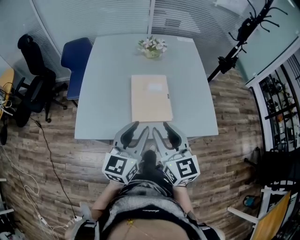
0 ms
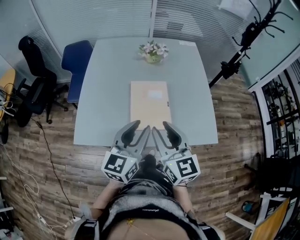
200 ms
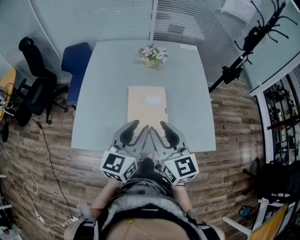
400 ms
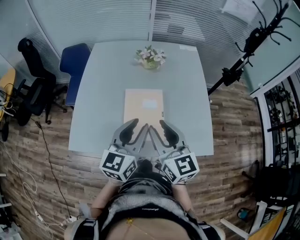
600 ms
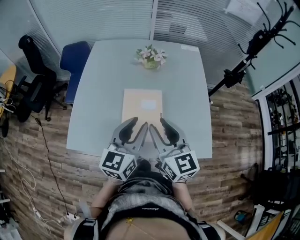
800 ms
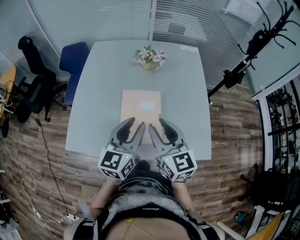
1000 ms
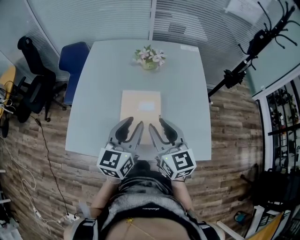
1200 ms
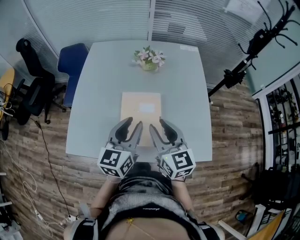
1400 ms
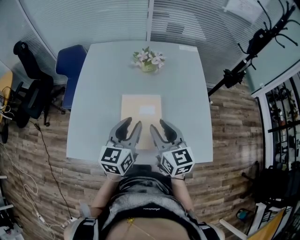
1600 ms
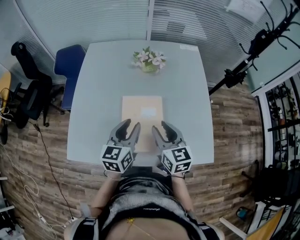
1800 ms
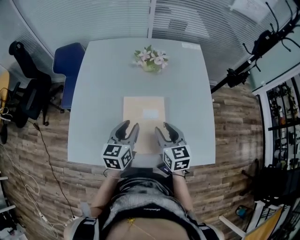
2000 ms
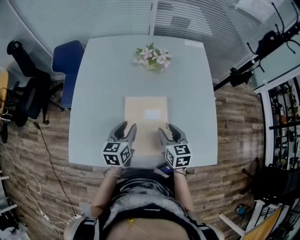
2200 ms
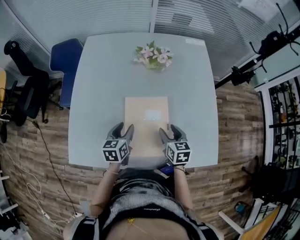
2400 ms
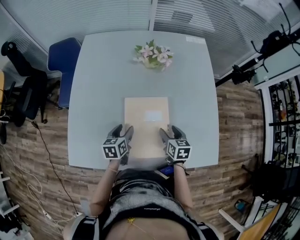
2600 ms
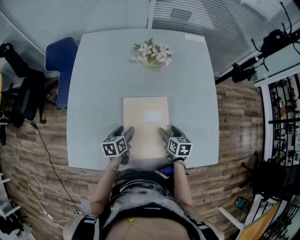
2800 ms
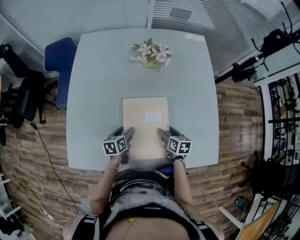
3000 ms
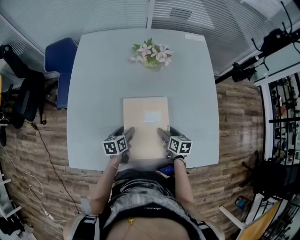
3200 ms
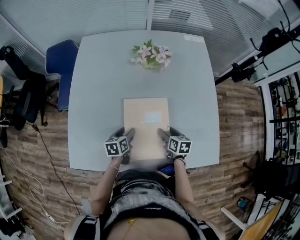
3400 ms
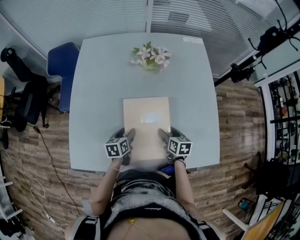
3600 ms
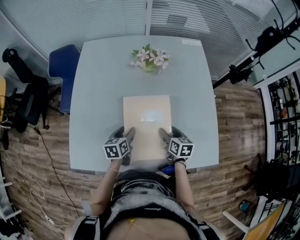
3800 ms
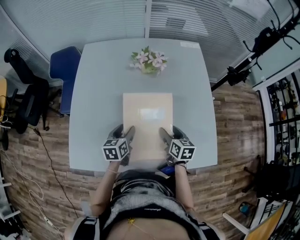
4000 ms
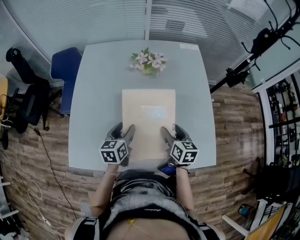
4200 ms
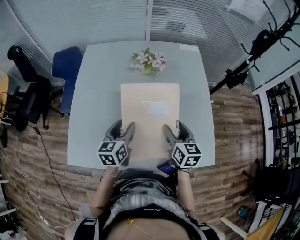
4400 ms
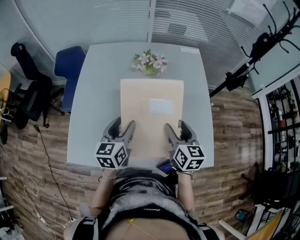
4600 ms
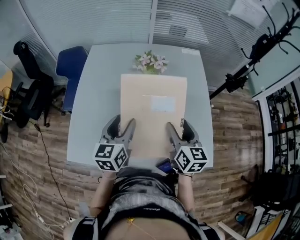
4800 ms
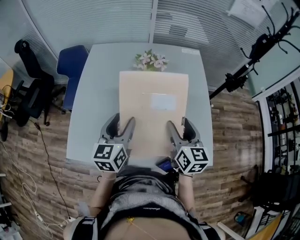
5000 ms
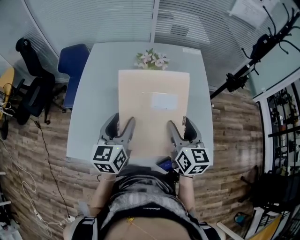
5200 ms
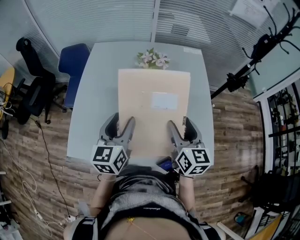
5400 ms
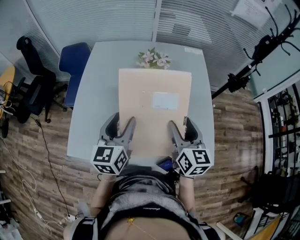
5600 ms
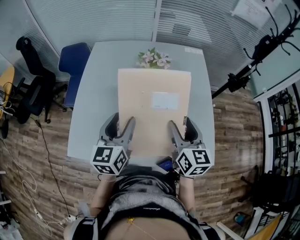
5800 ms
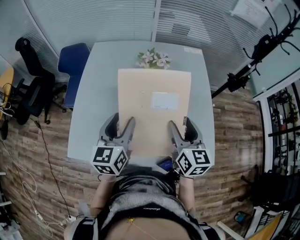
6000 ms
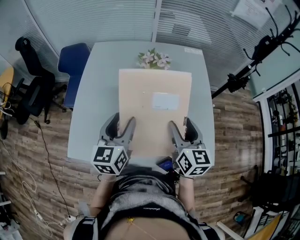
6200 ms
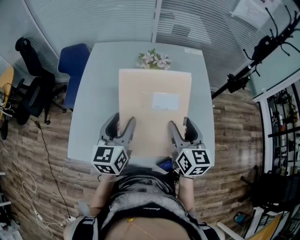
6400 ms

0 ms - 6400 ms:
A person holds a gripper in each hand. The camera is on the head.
0 ms - 1600 ms: The grippers both shift forward by roughly 20 cm.
1600 ms - 3200 ms: The two grippers go approximately 30 cm downward. The left gripper angles its fingers downward, by some 30 degrees, and opens its fingers. The right gripper swivels about 40 degrees, and opens up.
3200 ms - 4800 ms: The two grippers go approximately 30 cm upward. The left gripper rotates about 40 degrees. The right gripper swivels roughly 30 degrees.
4800 ms - 6400 ms: The grippers stay close to where they were, moving slightly.

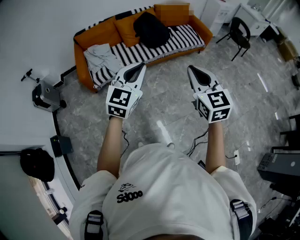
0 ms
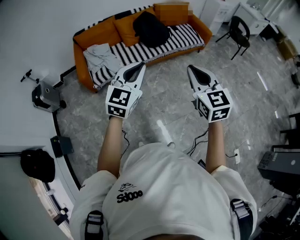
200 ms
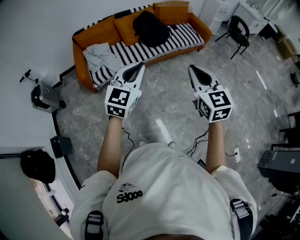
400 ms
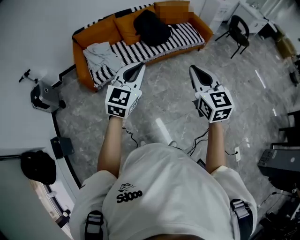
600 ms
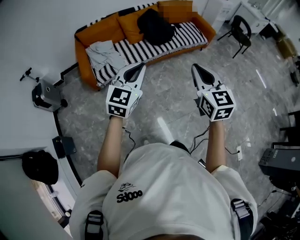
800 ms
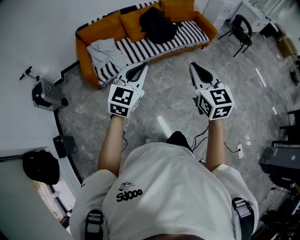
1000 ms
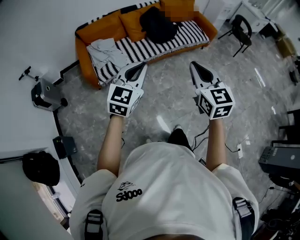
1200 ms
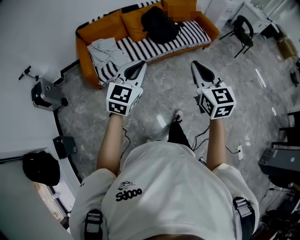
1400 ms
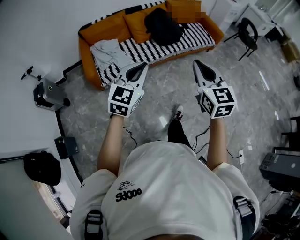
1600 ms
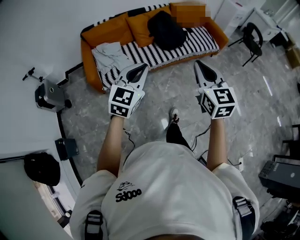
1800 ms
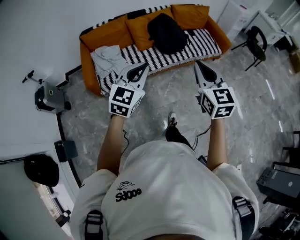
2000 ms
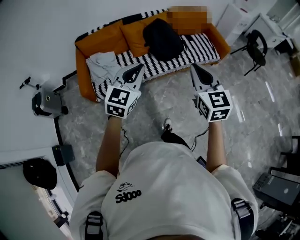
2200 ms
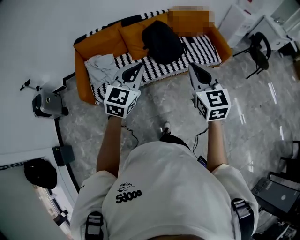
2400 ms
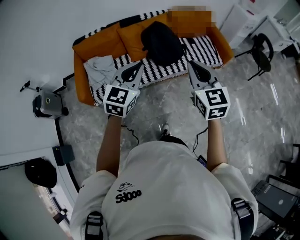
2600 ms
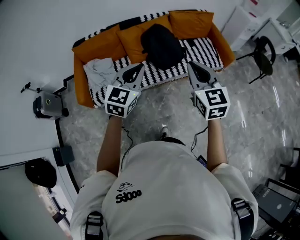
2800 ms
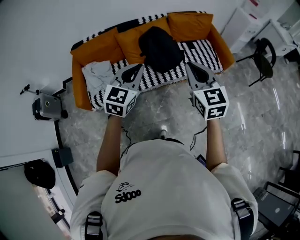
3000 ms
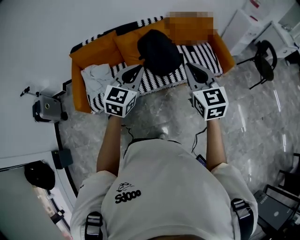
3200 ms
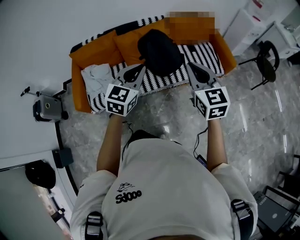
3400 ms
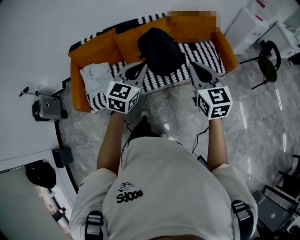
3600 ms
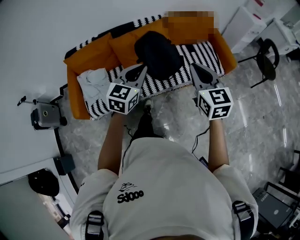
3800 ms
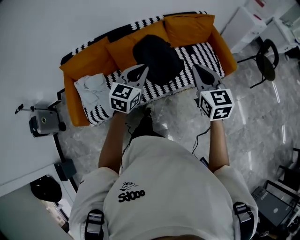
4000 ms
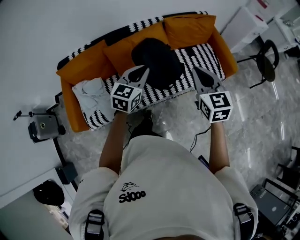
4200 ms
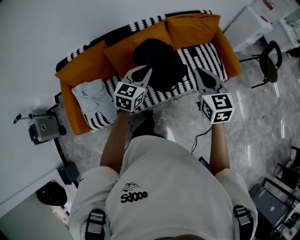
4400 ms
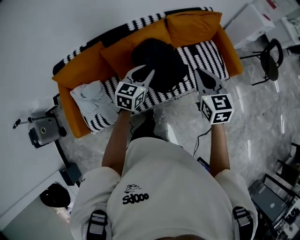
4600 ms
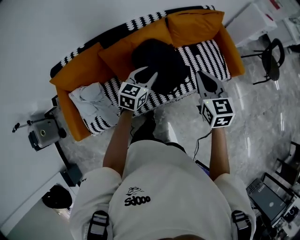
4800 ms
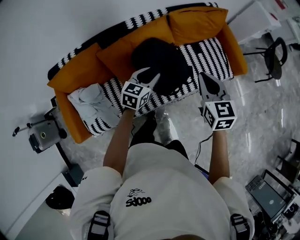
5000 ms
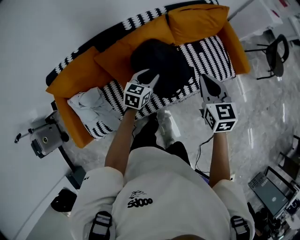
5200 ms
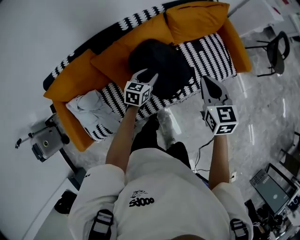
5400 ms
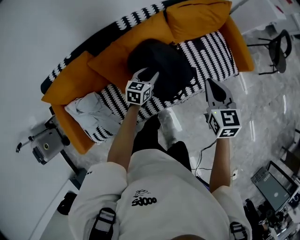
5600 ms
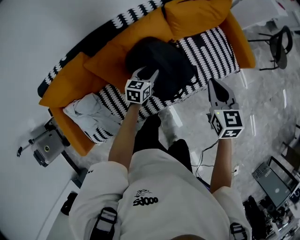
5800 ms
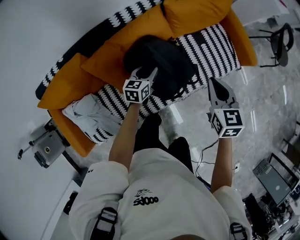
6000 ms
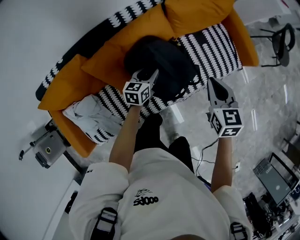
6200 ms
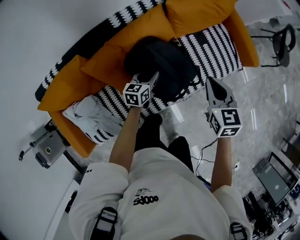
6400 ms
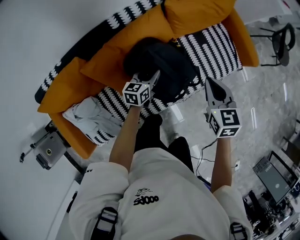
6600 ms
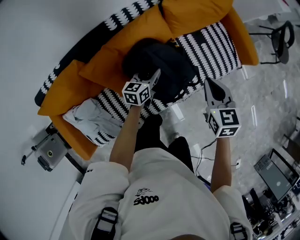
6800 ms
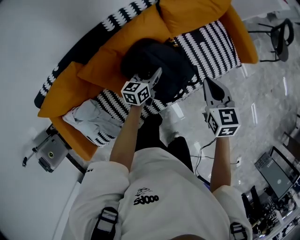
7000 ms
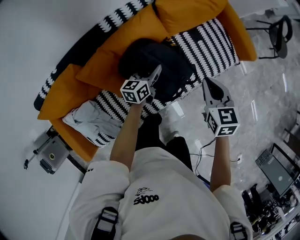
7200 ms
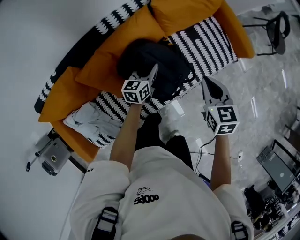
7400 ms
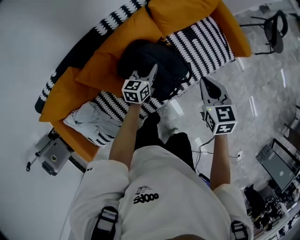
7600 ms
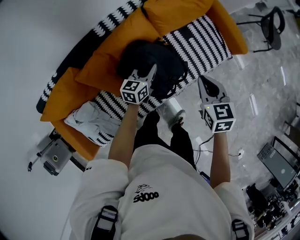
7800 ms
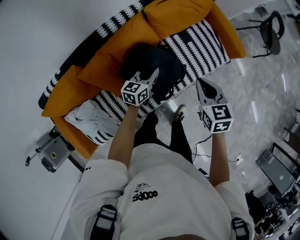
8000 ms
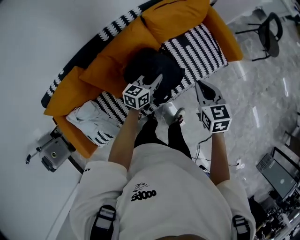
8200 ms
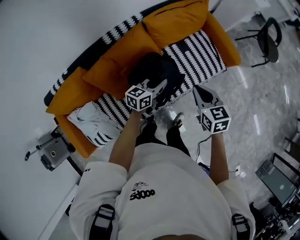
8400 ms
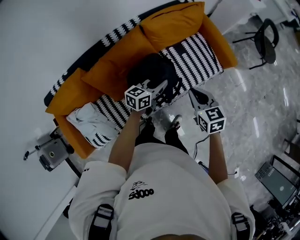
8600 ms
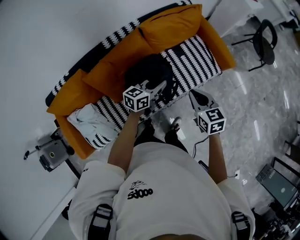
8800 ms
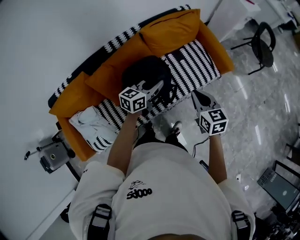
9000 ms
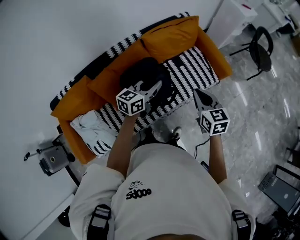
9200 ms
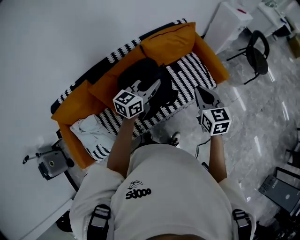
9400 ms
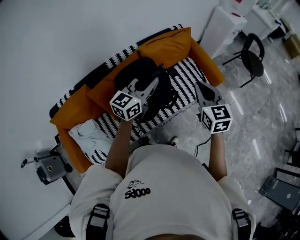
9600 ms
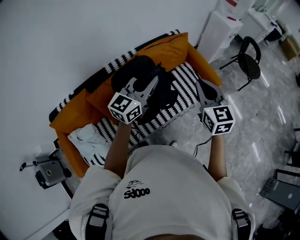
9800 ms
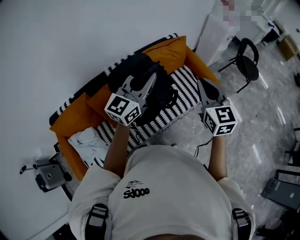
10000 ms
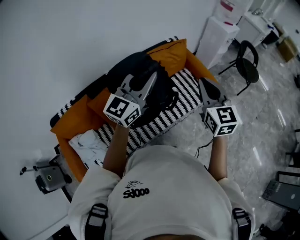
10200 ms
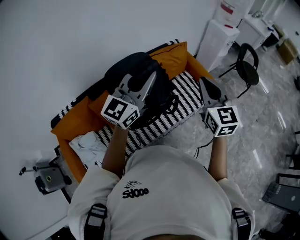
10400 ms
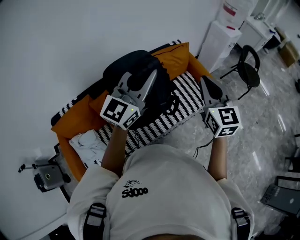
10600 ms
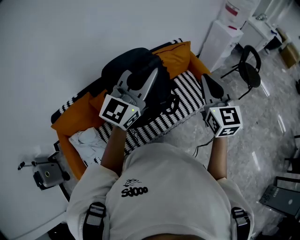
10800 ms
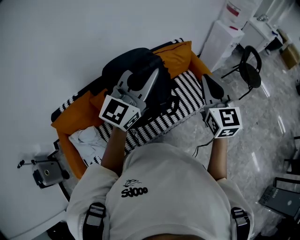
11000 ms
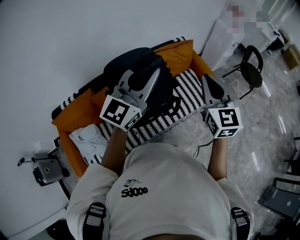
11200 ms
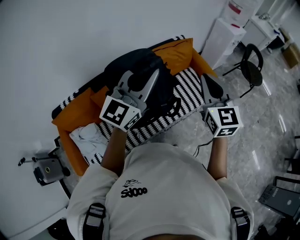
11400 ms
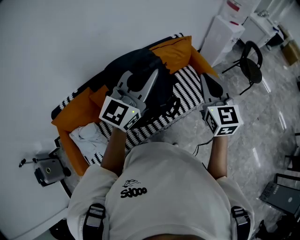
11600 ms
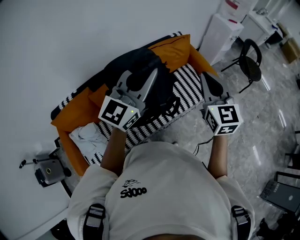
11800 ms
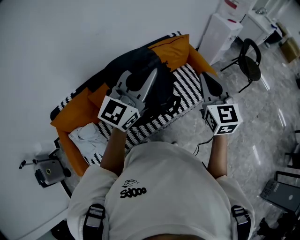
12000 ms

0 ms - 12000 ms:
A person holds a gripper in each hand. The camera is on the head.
0 ms - 1600 ms: The grippers both shift to the left and forward by about 15 cm.
1600 ms - 3000 ms: Both grippers are carried forward, approximately 50 cm.
3000 ms - 4400 ms: The grippers both shift forward by roughly 35 cm.
4400 ms - 6000 ms: The two grippers go roughly 35 cm downward and forward. The left gripper turns by some 20 degrees, and opens up.
6000 ms - 7600 ms: The left gripper travels forward by roughly 5 cm.
7600 ms - 9000 ms: The right gripper shifts roughly 20 cm to the right, upward and backward. The left gripper goes some 30 cm upward, to the right and backward.
9000 ms - 10400 ms: Both grippers travel together upward, roughly 30 cm. The left gripper rotates approximately 50 degrees. Meanwhile the right gripper rotates some 30 degrees.
10400 ms - 12000 ms: There are only small adjustments of the grippers.

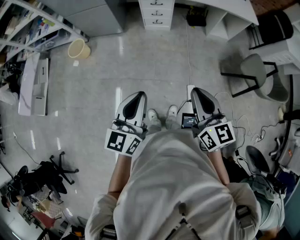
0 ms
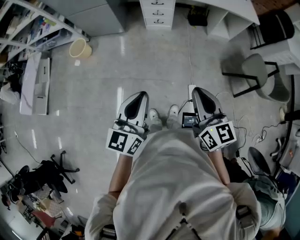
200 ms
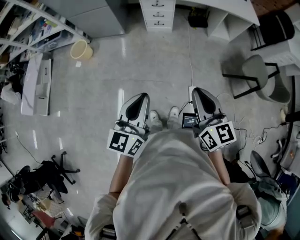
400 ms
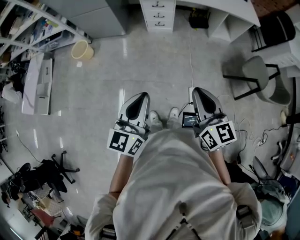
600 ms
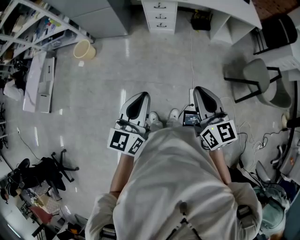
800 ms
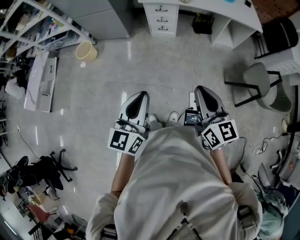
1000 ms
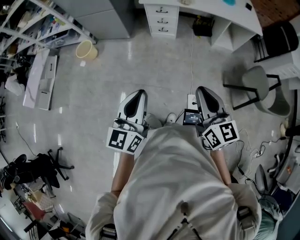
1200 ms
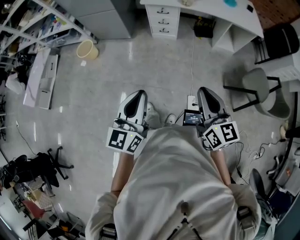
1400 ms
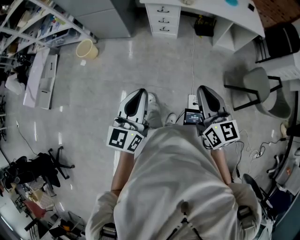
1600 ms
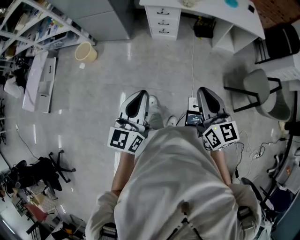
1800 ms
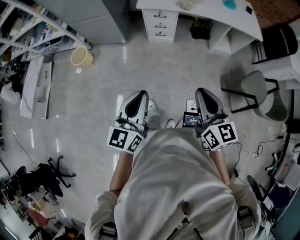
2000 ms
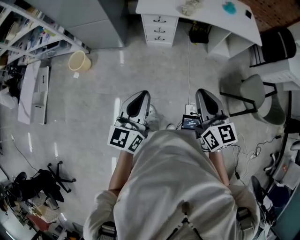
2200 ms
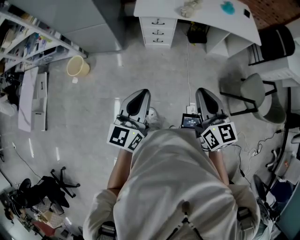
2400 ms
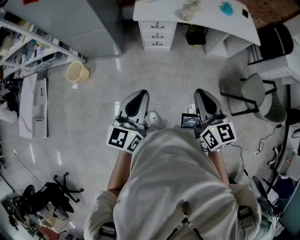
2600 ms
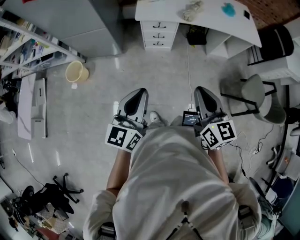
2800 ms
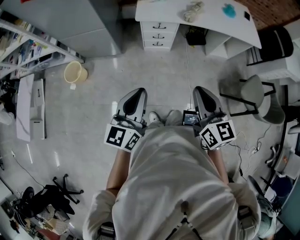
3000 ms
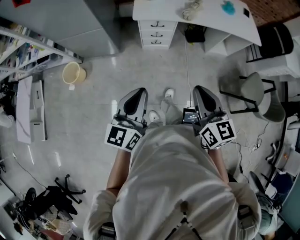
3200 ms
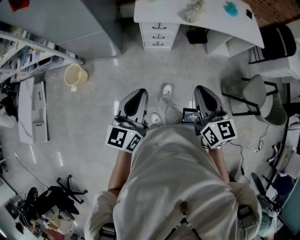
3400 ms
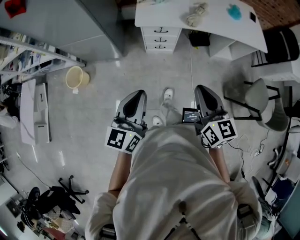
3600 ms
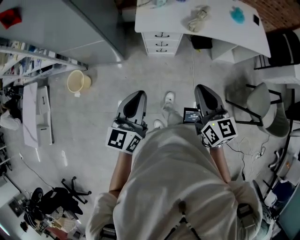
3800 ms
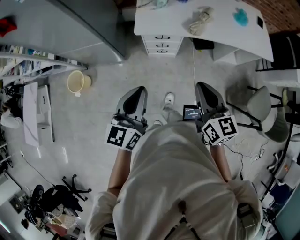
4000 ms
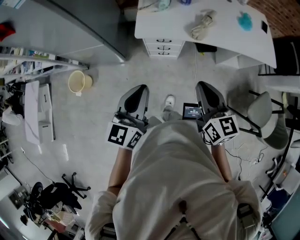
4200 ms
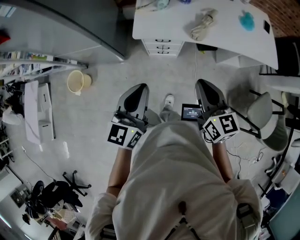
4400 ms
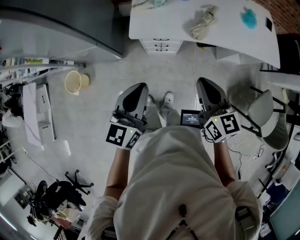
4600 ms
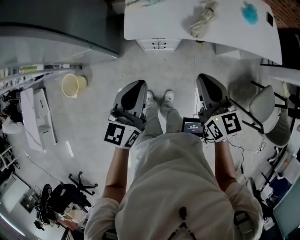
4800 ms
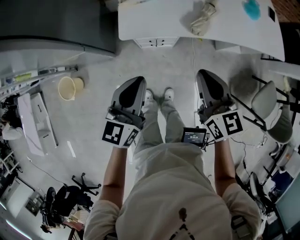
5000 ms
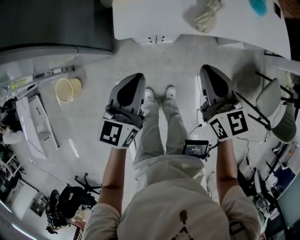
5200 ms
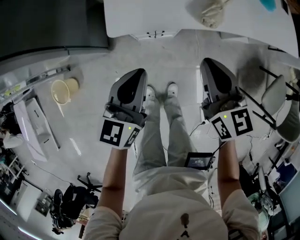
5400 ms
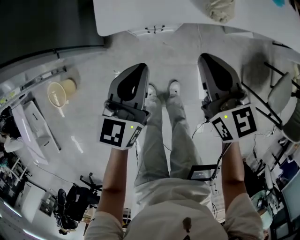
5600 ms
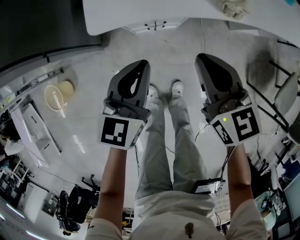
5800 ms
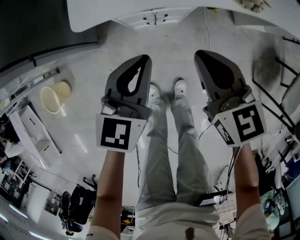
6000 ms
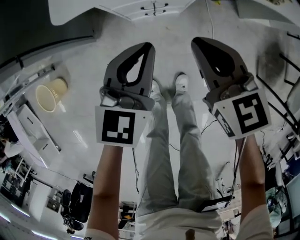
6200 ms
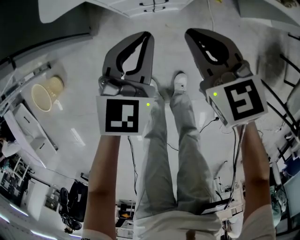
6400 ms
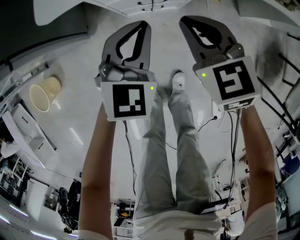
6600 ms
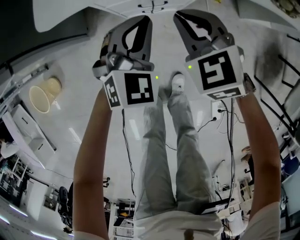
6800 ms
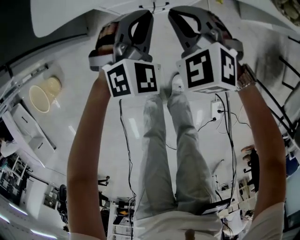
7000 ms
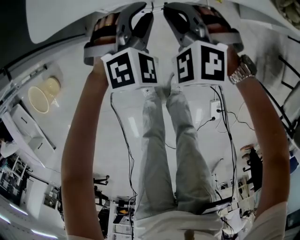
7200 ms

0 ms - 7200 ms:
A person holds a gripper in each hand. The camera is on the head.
0 ms - 1400 ms: The grippers both shift to the right by about 5 cm.
1400 ms - 2800 ms: The grippers both shift forward and to the left by about 25 cm.
2800 ms - 4400 ms: The grippers both shift forward by roughly 30 cm.
4400 ms - 5800 ms: The grippers both shift downward and forward by roughly 35 cm.
5800 ms - 7200 ms: Both grippers move downward and forward, about 25 cm. The left gripper twists some 60 degrees clockwise, seen from behind, and opens up. The right gripper twists some 60 degrees counterclockwise, seen from behind.
